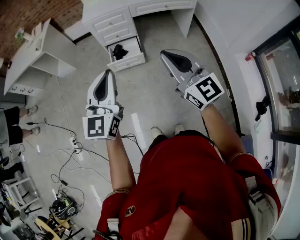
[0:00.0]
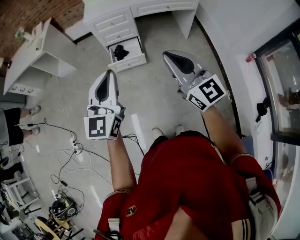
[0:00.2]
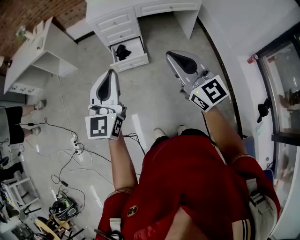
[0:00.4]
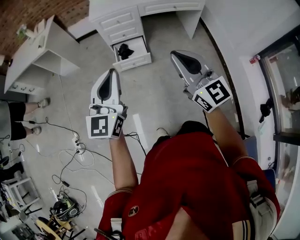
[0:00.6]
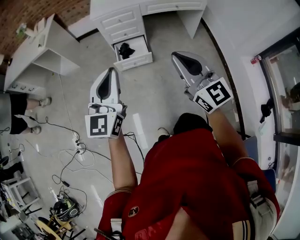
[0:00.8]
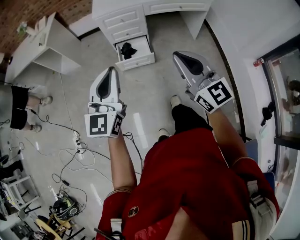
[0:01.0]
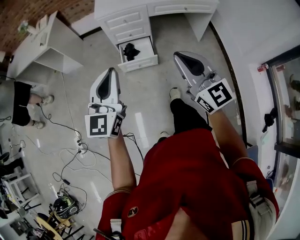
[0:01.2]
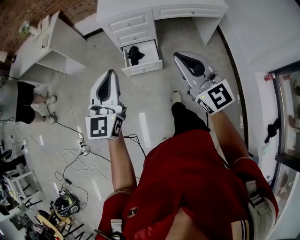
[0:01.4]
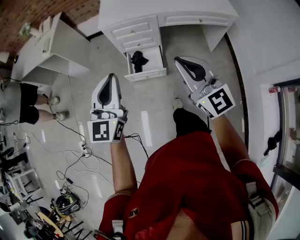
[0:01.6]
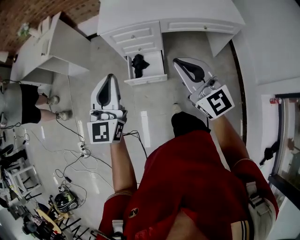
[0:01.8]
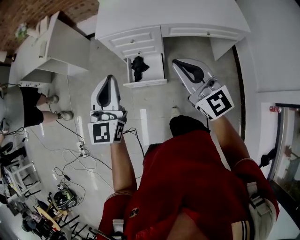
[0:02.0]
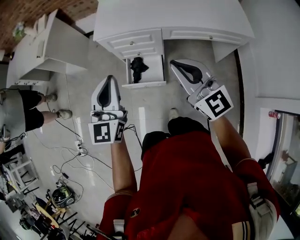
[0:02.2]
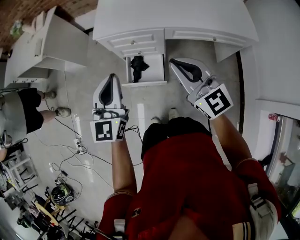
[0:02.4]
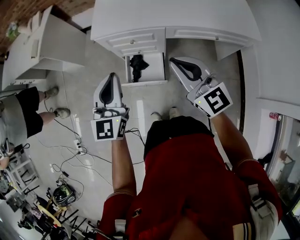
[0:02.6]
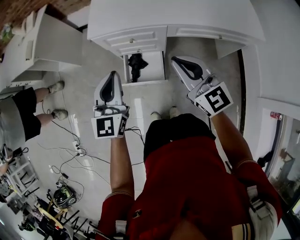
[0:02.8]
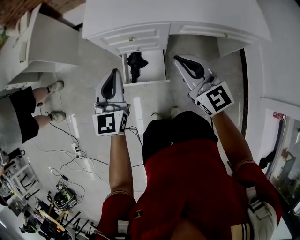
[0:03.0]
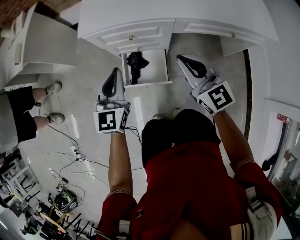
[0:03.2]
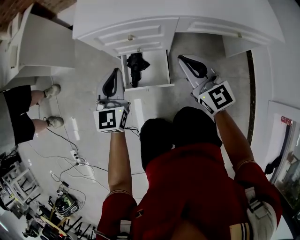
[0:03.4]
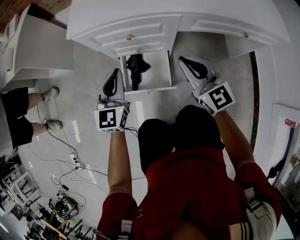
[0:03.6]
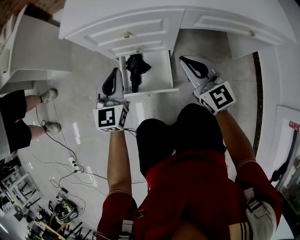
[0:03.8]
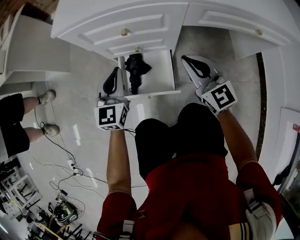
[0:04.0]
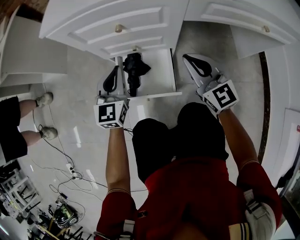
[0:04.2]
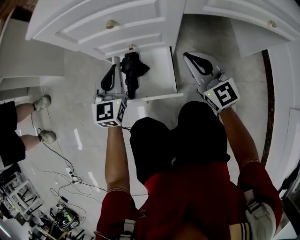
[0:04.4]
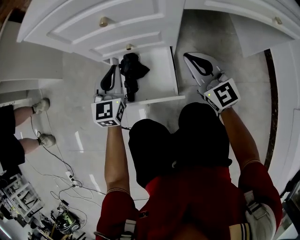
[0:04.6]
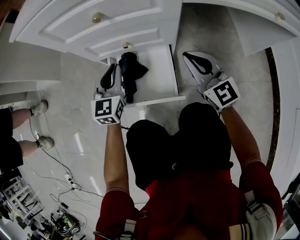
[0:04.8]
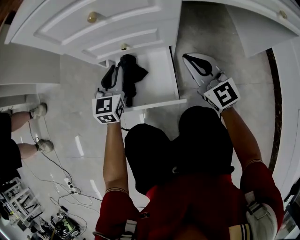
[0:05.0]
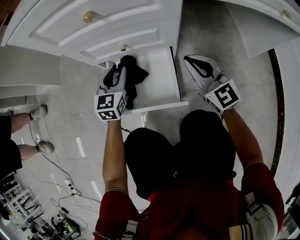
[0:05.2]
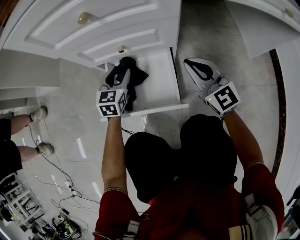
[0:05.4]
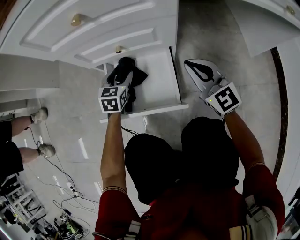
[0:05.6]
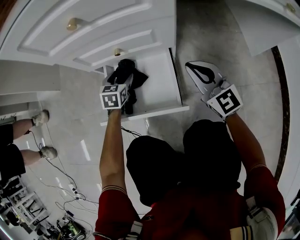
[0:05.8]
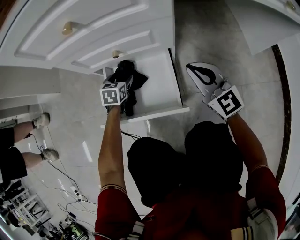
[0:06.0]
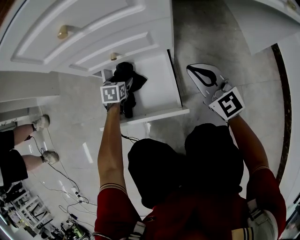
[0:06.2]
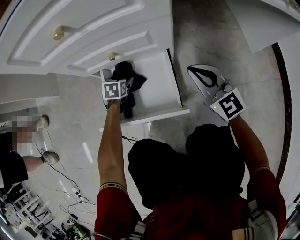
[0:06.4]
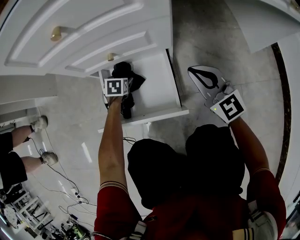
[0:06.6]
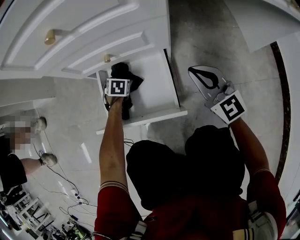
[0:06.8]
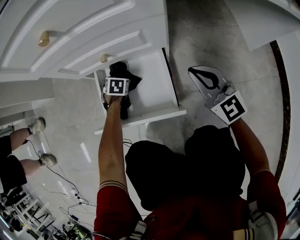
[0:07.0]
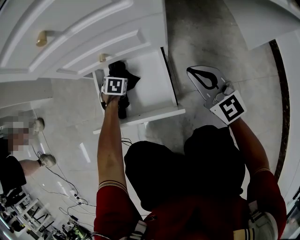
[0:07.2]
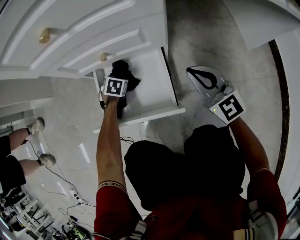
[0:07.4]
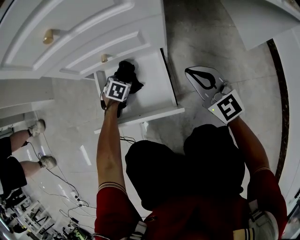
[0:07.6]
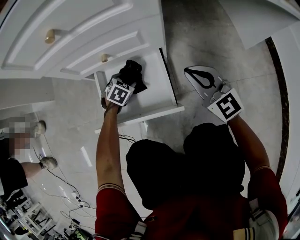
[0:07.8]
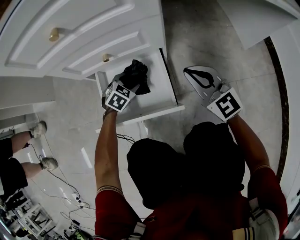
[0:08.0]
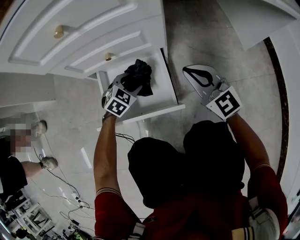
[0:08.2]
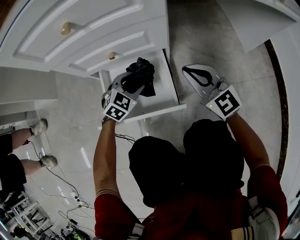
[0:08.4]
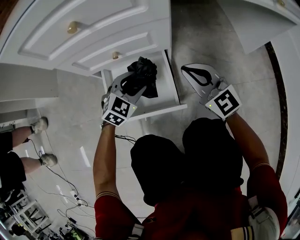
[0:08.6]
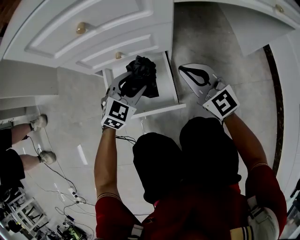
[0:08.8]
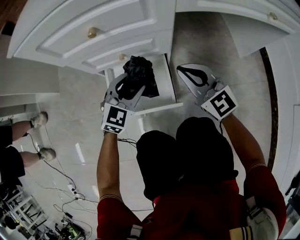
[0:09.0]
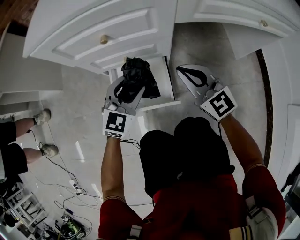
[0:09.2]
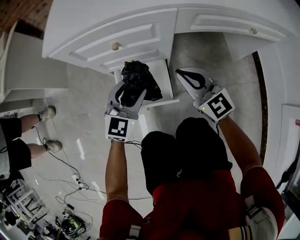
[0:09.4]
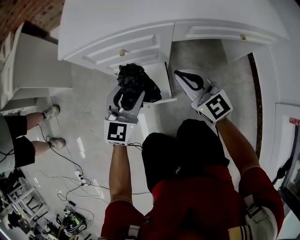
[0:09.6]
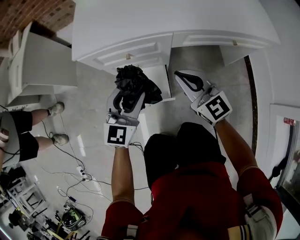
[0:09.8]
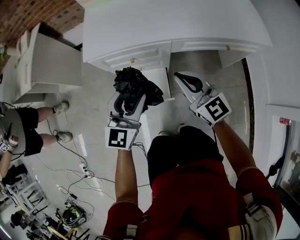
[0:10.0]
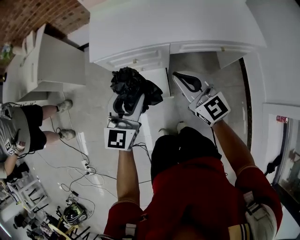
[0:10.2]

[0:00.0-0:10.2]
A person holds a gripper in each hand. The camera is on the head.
0.0 to 1.4 s: The grippers both shift forward by about 20 cm.
1.4 to 3.0 s: Both grippers move forward and downward, some 40 cm.
3.0 to 4.4 s: Both grippers move downward, some 40 cm.
4.4 to 5.8 s: The left gripper heads downward, covering approximately 30 cm, tilts its fingers about 30 degrees downward, and opens. The right gripper travels downward by about 15 cm.
5.8 to 7.2 s: The left gripper travels downward by roughly 10 cm, and turns by approximately 30 degrees.
7.2 to 8.8 s: The left gripper heads upward and to the right, covering about 25 cm, and tips its fingers upward by about 40 degrees; the right gripper travels upward by roughly 5 cm.
8.8 to 10.2 s: The grippers both shift upward by approximately 50 cm. The left gripper changes its angle by about 40 degrees.

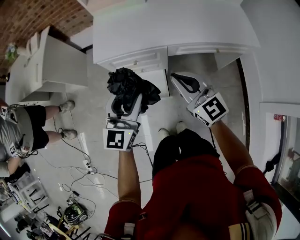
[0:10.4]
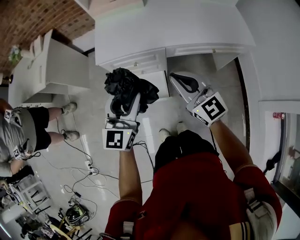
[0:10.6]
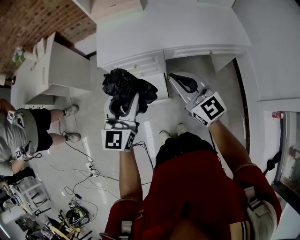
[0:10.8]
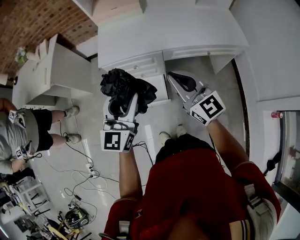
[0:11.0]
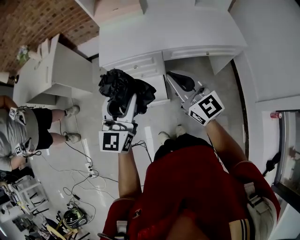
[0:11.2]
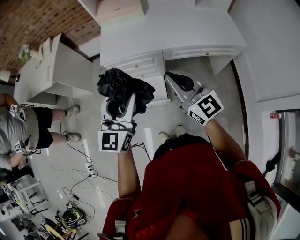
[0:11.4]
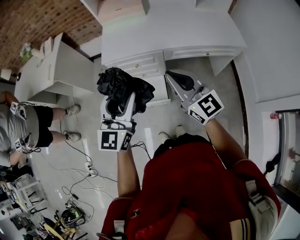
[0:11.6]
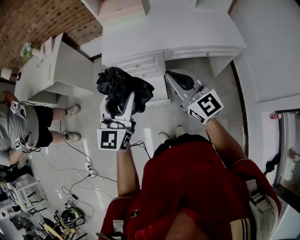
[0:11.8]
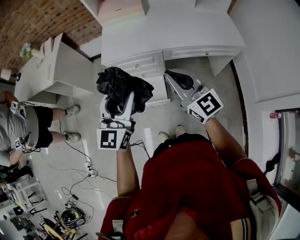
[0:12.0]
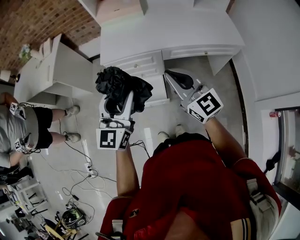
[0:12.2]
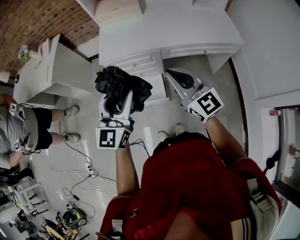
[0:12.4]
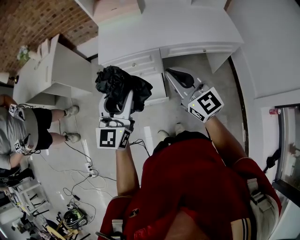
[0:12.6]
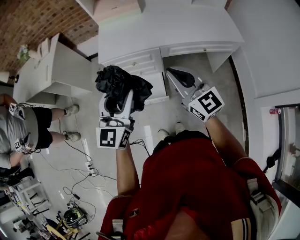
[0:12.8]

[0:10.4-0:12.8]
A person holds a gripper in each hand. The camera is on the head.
10.4 to 11.6 s: Both grippers travel together upward and backward, approximately 15 cm.
11.6 to 12.8 s: The two grippers keep their place.

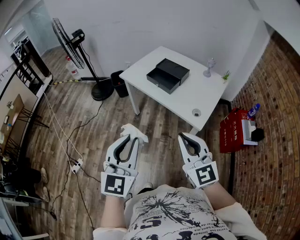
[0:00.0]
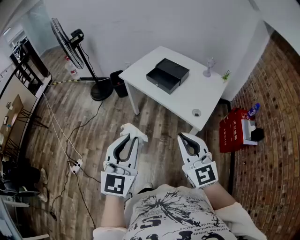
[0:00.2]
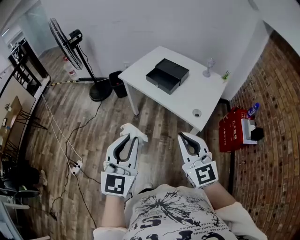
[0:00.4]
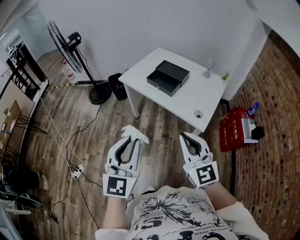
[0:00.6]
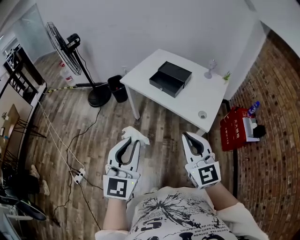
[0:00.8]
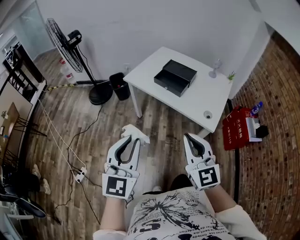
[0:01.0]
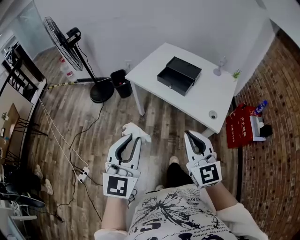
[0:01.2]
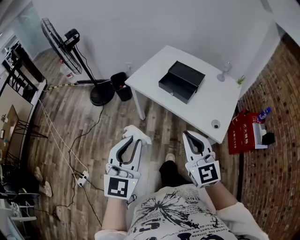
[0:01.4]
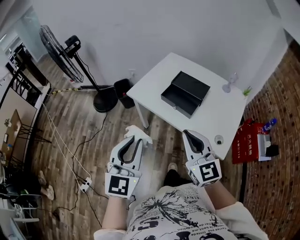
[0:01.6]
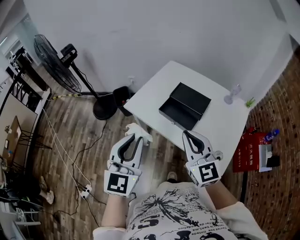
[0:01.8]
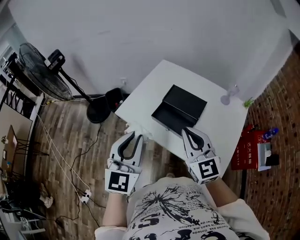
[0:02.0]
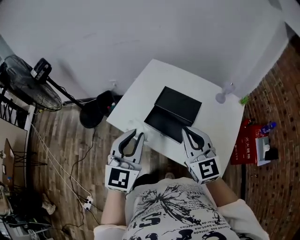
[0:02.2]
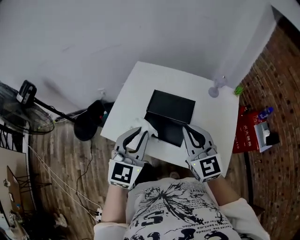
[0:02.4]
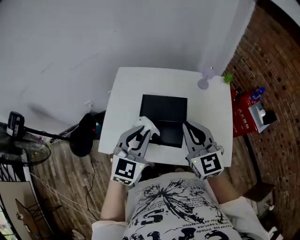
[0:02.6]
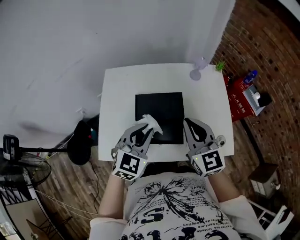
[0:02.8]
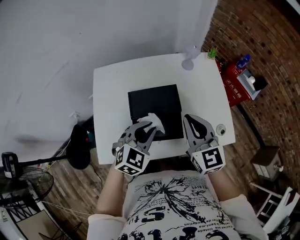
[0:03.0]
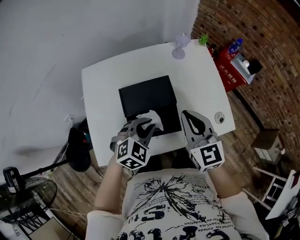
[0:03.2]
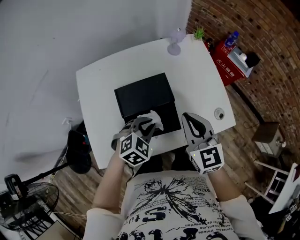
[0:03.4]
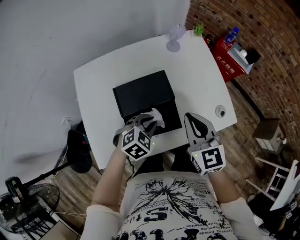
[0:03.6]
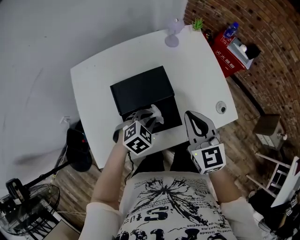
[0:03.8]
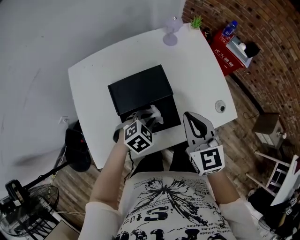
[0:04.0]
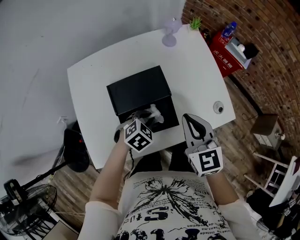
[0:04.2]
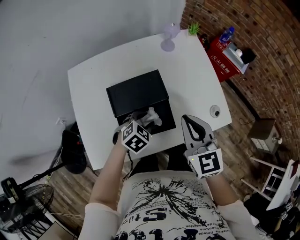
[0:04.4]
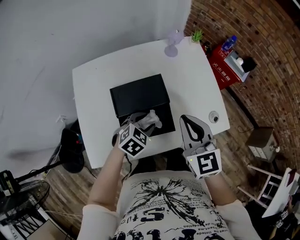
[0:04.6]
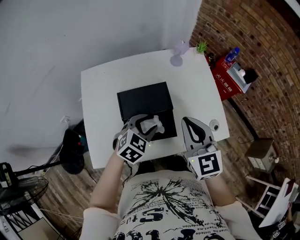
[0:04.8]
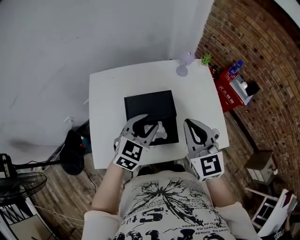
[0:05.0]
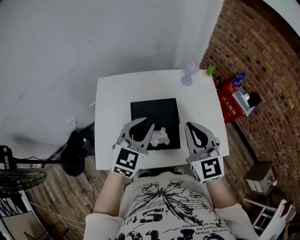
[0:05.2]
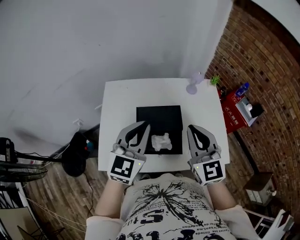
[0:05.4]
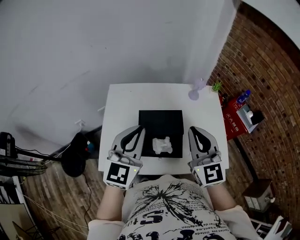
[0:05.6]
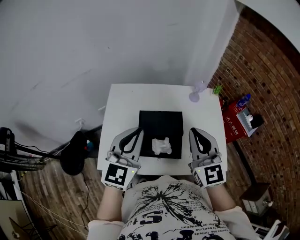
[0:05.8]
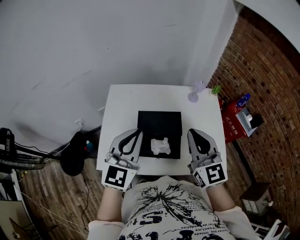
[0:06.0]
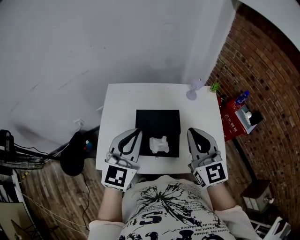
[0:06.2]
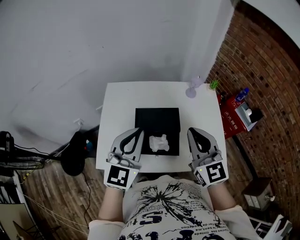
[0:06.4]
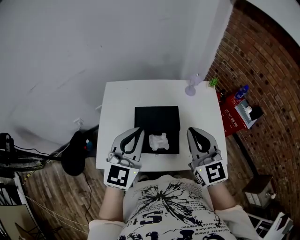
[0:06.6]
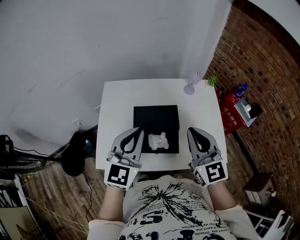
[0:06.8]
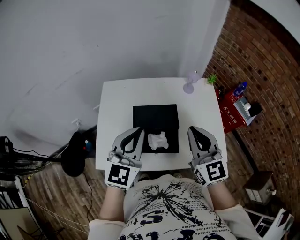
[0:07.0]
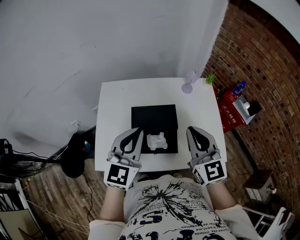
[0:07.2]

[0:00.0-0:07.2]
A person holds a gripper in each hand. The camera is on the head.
0.0 to 1.4 s: Both grippers travel together forward and to the left, roughly 20 cm.
1.4 to 2.8 s: Both grippers are carried approximately 50 cm. The left gripper turns by roughly 60 degrees; the right gripper rotates approximately 40 degrees.
2.8 to 4.4 s: The left gripper shifts some 20 cm downward, tilts its fingers roughly 30 degrees downward, and opens its fingers, while the right gripper is displaced downward by roughly 10 cm, and turns by roughly 20 degrees.
4.4 to 5.8 s: The right gripper travels upward by approximately 15 cm, and turns by some 30 degrees. The left gripper goes some 35 cm upward, points its fingers roughly 60 degrees further upward, and closes up.
5.8 to 7.2 s: The grippers stay close to where they were, moving slightly.

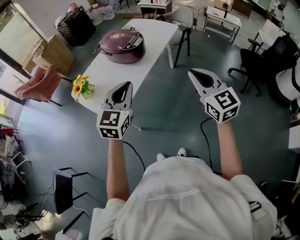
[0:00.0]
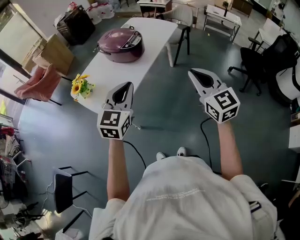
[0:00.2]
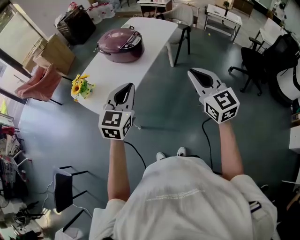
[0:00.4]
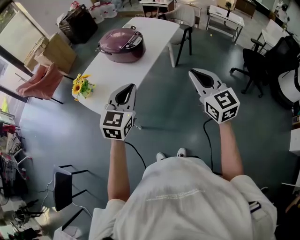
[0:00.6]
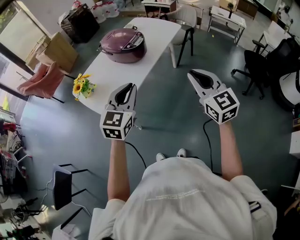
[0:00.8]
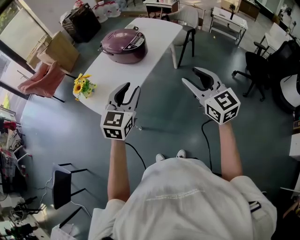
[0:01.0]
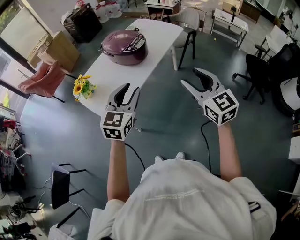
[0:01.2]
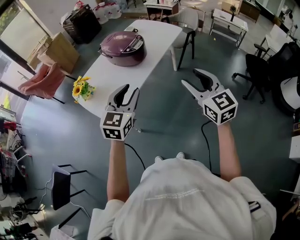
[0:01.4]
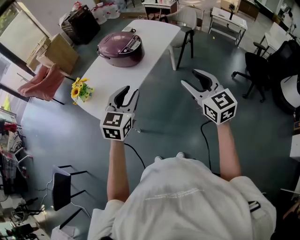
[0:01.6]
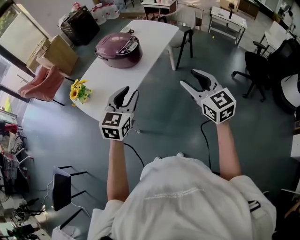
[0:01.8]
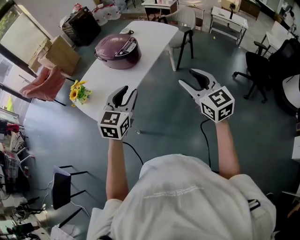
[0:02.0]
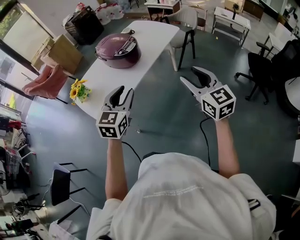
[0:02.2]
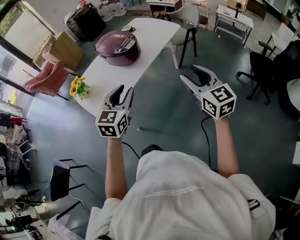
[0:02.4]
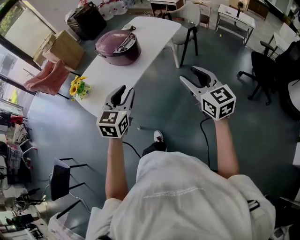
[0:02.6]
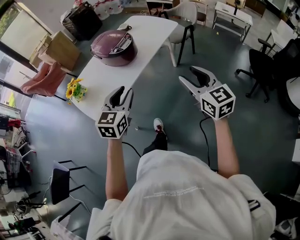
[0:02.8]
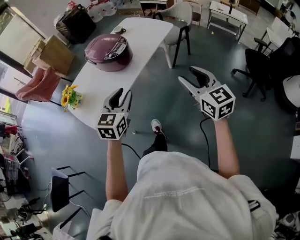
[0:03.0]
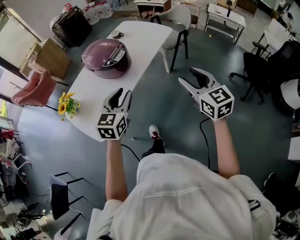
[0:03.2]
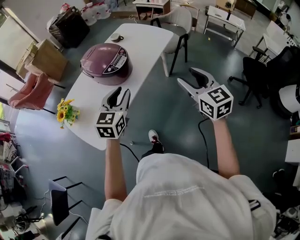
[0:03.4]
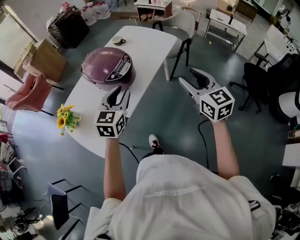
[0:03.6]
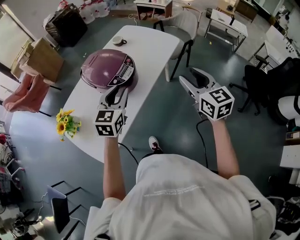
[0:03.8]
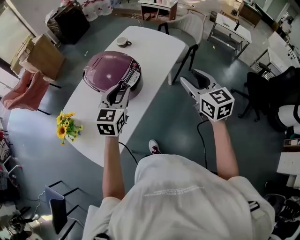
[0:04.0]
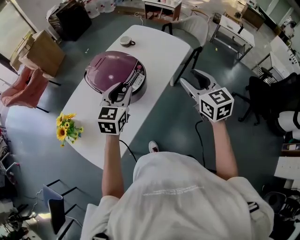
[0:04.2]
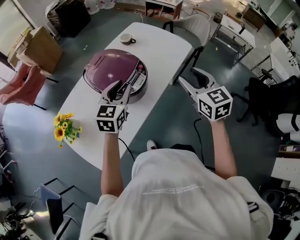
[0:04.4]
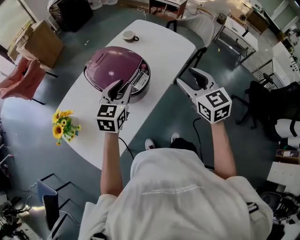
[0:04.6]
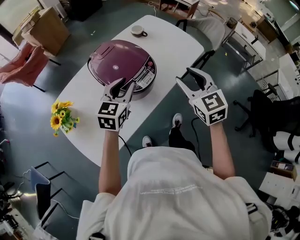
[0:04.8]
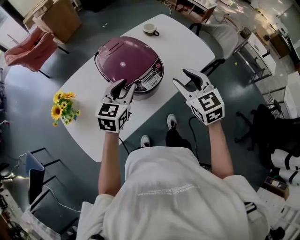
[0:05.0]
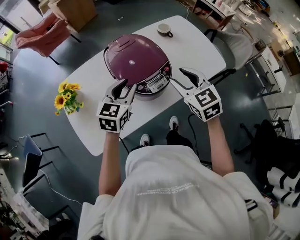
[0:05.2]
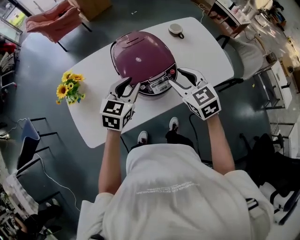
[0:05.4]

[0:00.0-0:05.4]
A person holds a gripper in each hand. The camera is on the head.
0.0 to 1.4 s: The right gripper opens its fingers. Meanwhile the left gripper opens up.
1.4 to 2.8 s: Both grippers travel together to the right, roughly 10 cm.
2.8 to 4.0 s: Both grippers move forward, roughly 30 cm.
4.0 to 5.4 s: The right gripper shifts by some 25 cm, and swivels about 50 degrees. Meanwhile the left gripper ends up about 10 cm from where it was, and swivels about 30 degrees.
